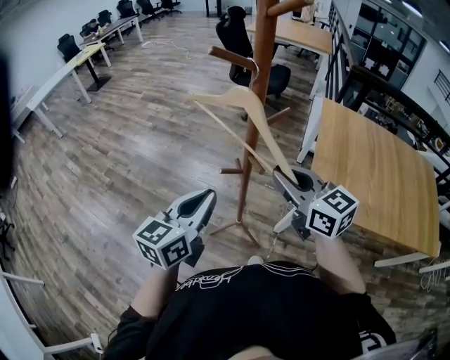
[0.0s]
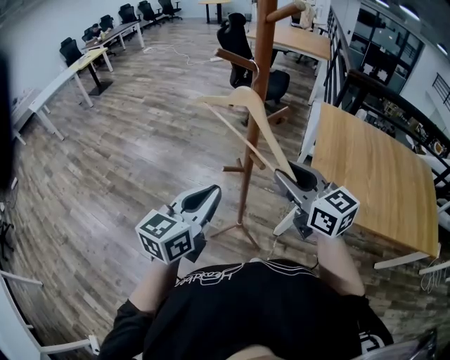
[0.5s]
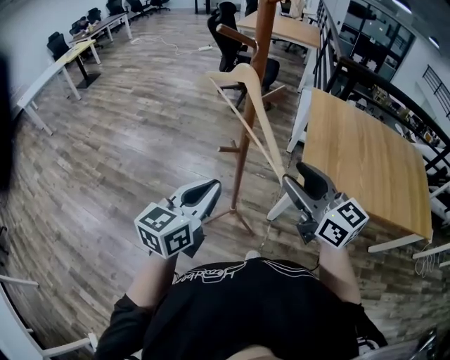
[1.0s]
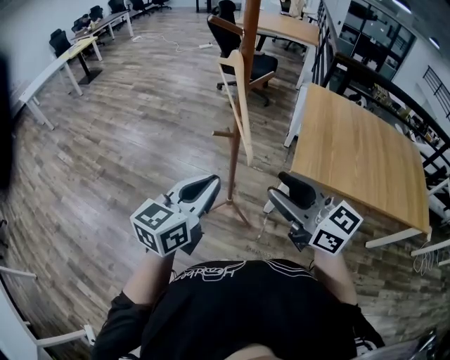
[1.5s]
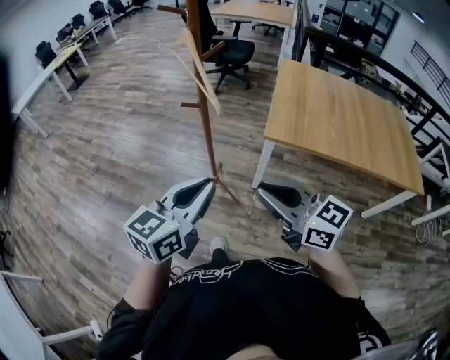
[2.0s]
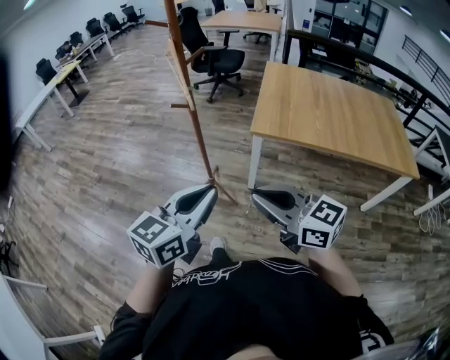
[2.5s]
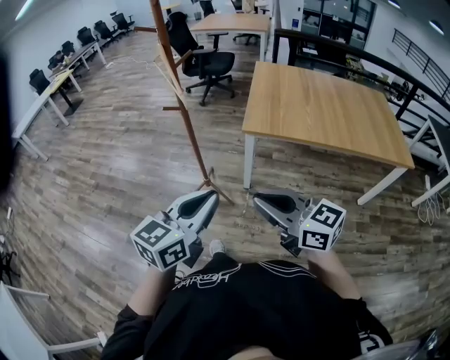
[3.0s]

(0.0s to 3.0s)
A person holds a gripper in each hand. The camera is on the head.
0.0s - 1.5s: The right gripper moves backward, some 20 cm, and opens. Meanwhile the left gripper heads backward, covering about 10 cm.
1.5s - 3.0s: The grippers both shift backward and to the right by some 30 cm. The right gripper closes.

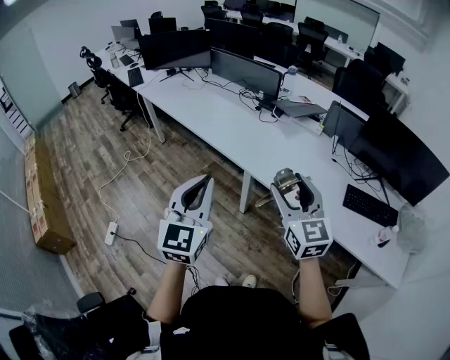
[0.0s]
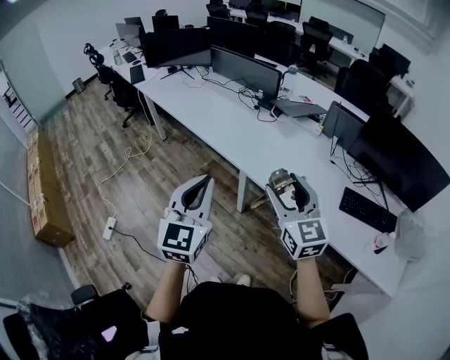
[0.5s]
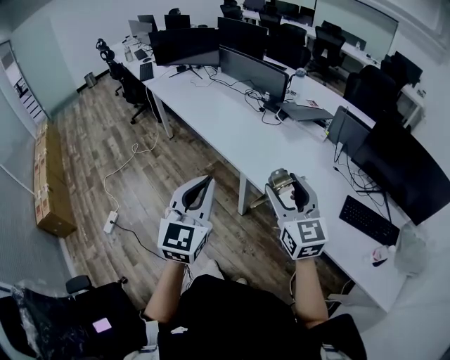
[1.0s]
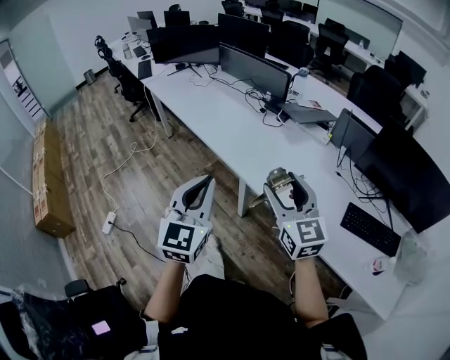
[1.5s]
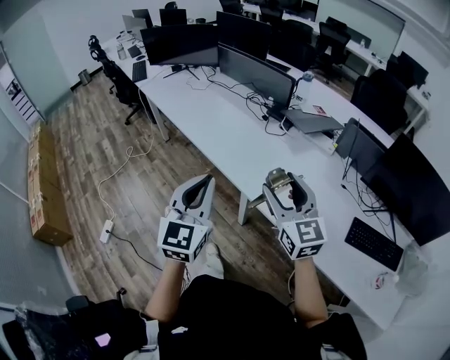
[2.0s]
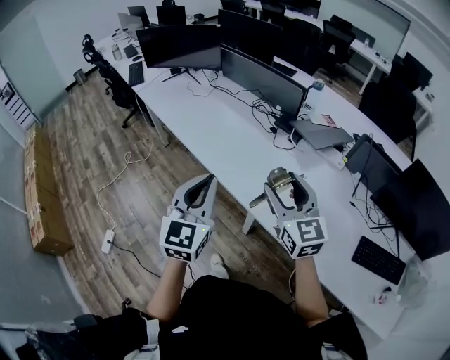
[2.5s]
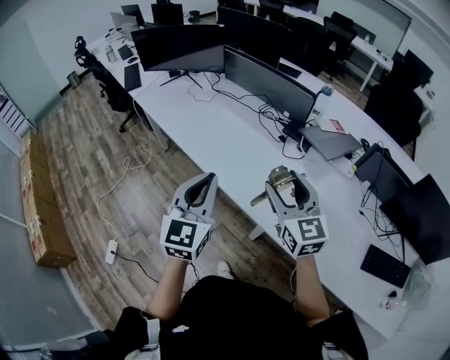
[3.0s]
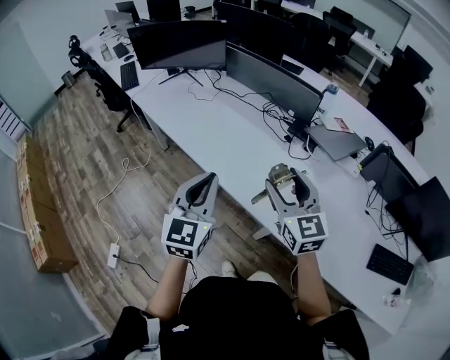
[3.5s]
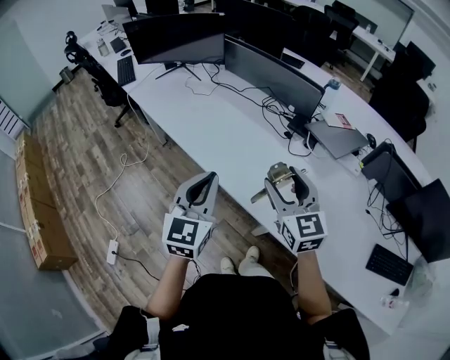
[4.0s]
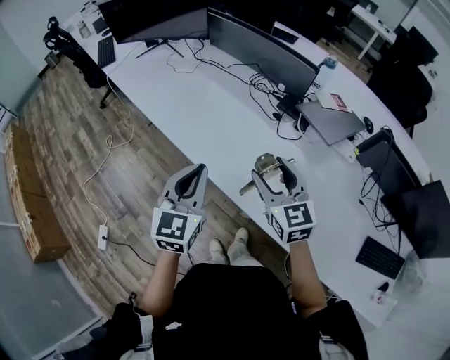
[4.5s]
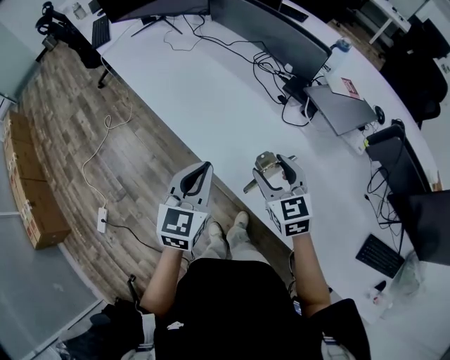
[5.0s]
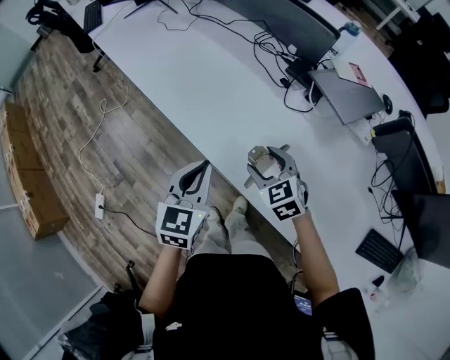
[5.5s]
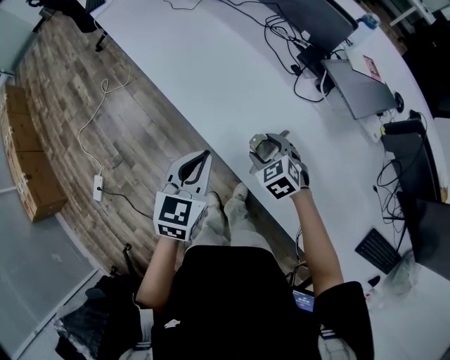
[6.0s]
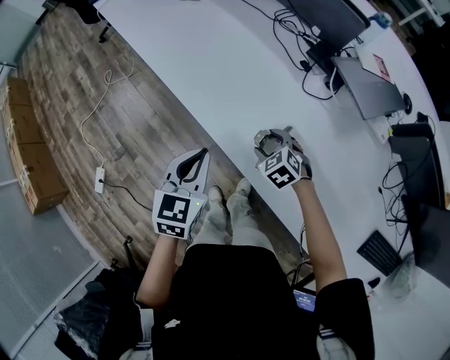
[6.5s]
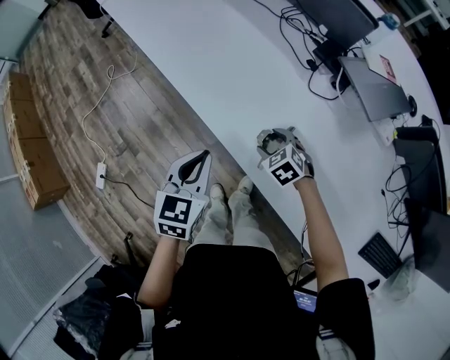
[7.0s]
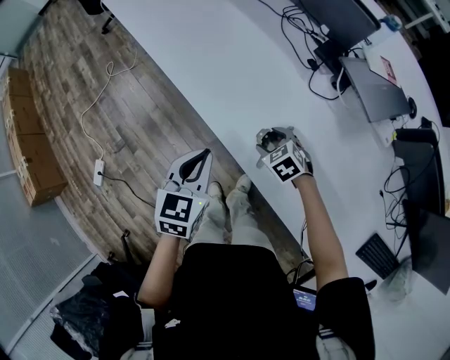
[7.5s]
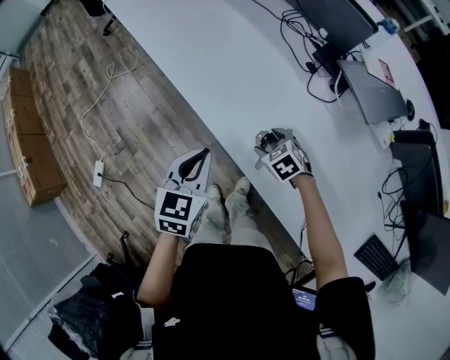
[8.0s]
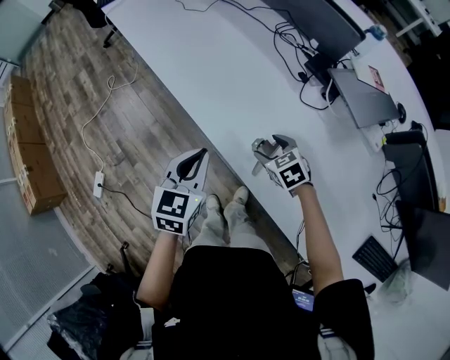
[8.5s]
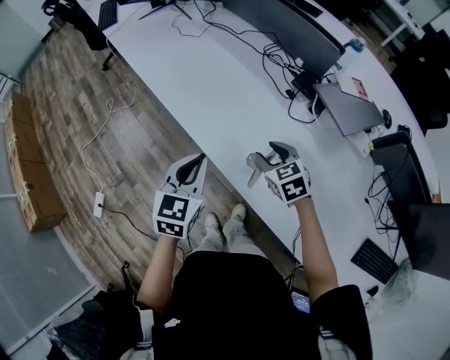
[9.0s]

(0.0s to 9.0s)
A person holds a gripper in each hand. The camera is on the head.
0.0s - 2.0s: Both grippers move forward, approximately 15 cm.
2.0s - 4.5s: Both grippers move forward, about 30 cm.
4.5s - 7.0s: The right gripper travels downward by roughly 30 cm, and tilts its fingers about 40 degrees downward, while the left gripper shifts about 20 cm downward, and changes its angle by roughly 20 degrees.
7.0s - 9.0s: The right gripper shifts roughly 15 cm upward, and turns by approximately 20 degrees; the left gripper shifts roughly 10 cm upward.

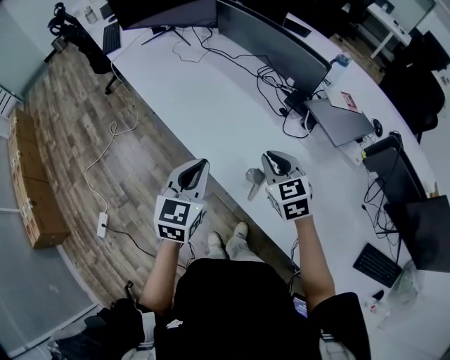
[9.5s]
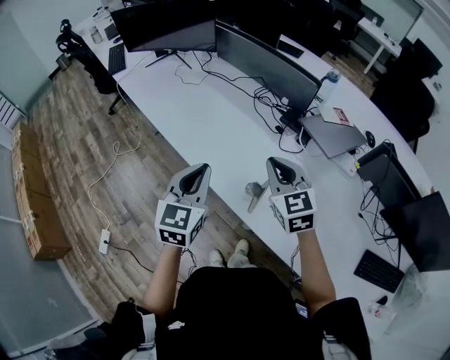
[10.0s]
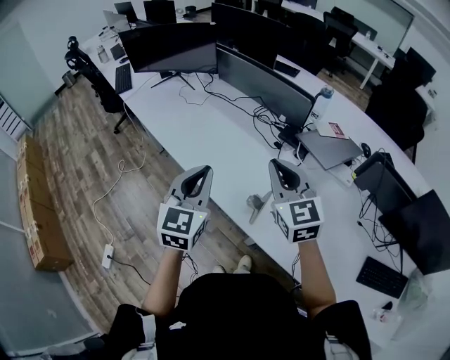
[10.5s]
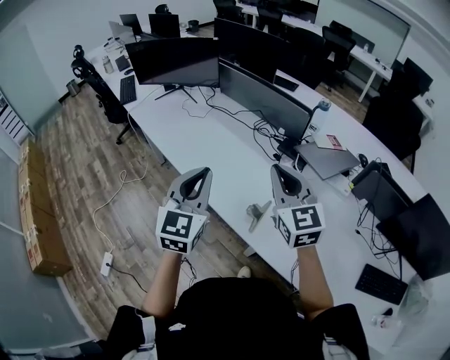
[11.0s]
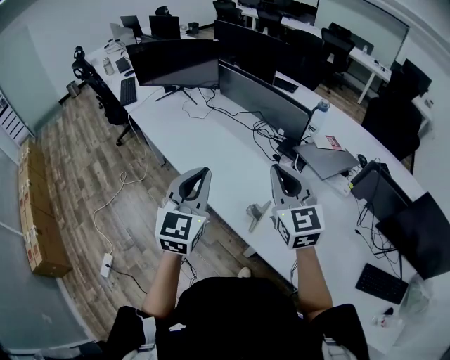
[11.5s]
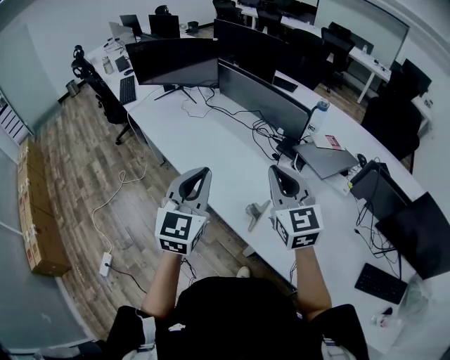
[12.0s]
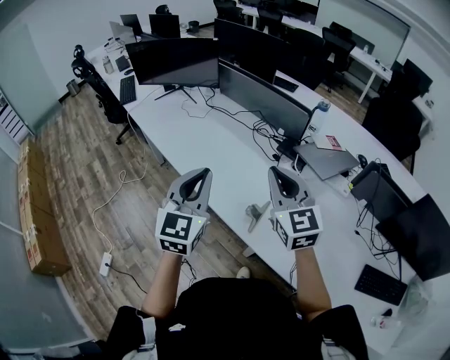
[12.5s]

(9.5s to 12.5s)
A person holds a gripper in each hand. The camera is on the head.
9.5s - 11.0s: Both grippers move upward, some 15 cm. The right gripper swivels roughly 30 degrees.
11.0s - 12.5s: Both grippers stay about where they are.

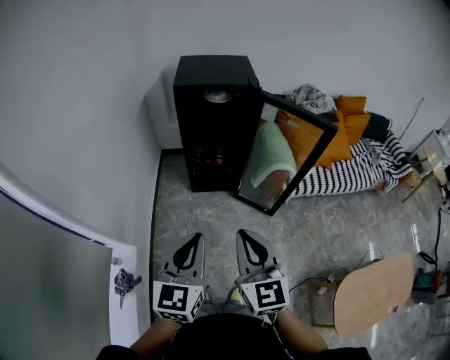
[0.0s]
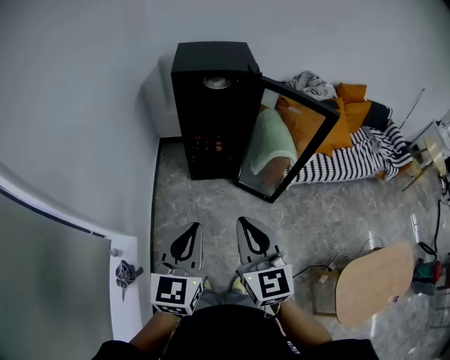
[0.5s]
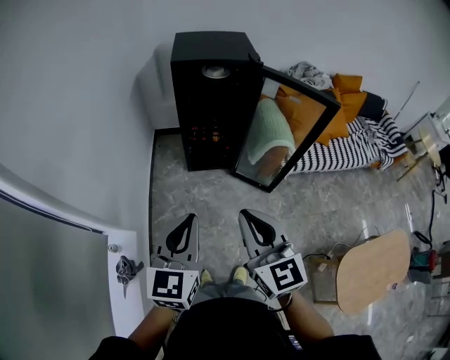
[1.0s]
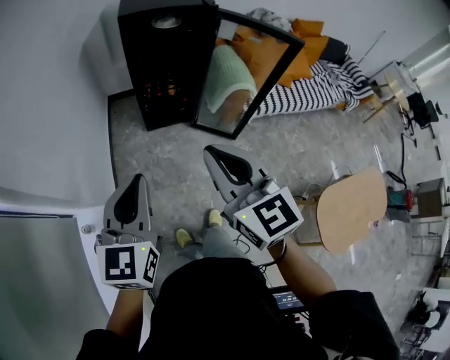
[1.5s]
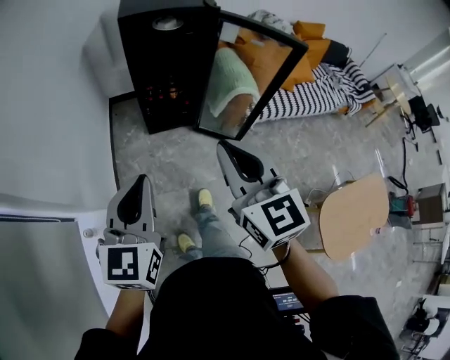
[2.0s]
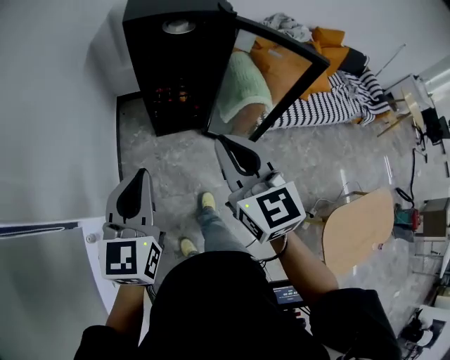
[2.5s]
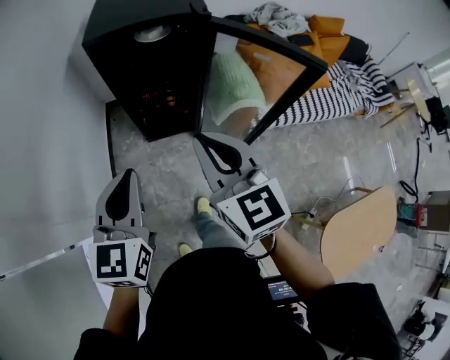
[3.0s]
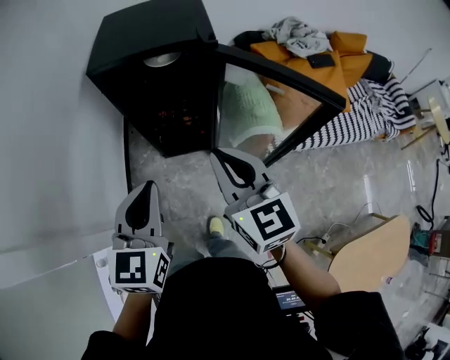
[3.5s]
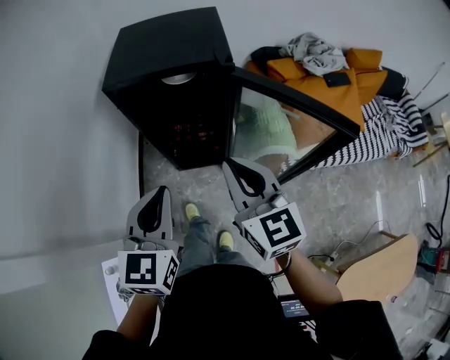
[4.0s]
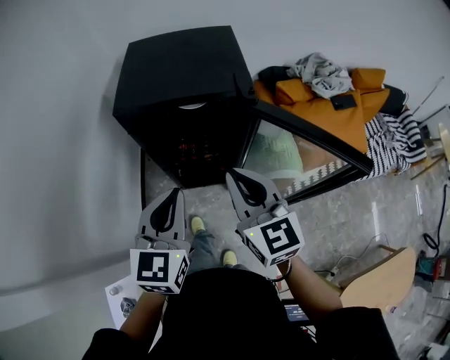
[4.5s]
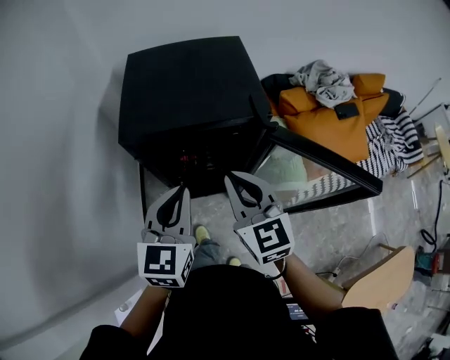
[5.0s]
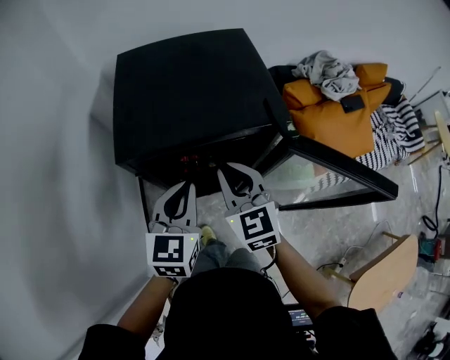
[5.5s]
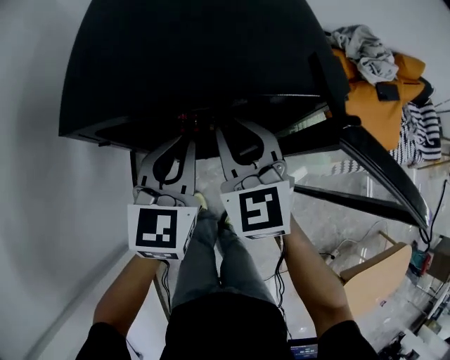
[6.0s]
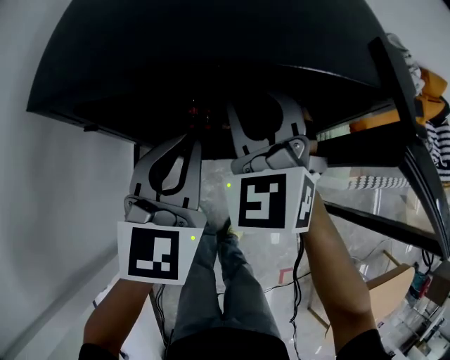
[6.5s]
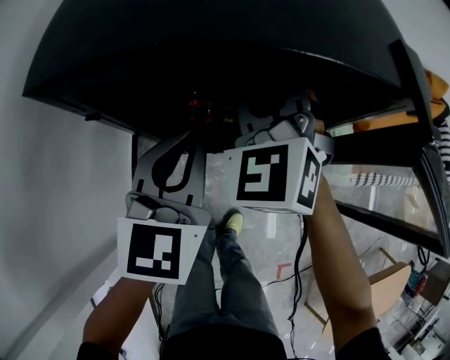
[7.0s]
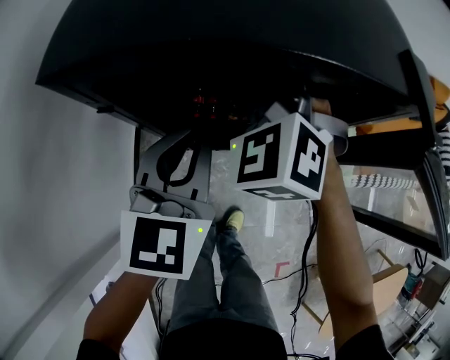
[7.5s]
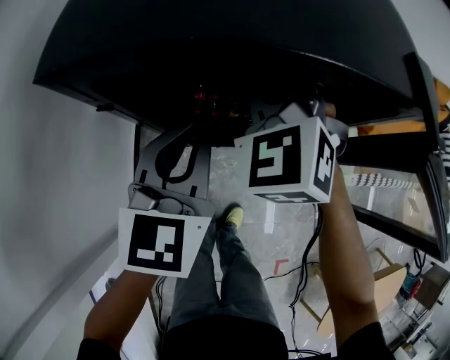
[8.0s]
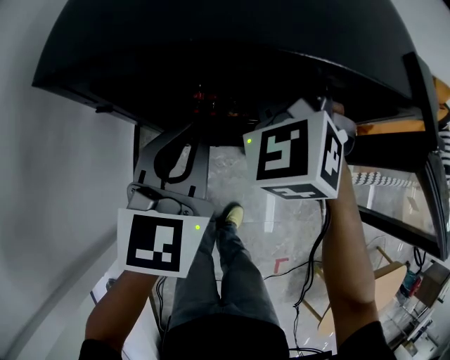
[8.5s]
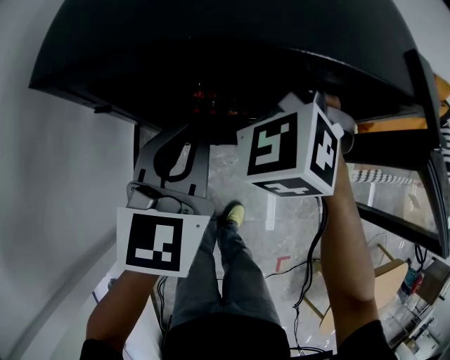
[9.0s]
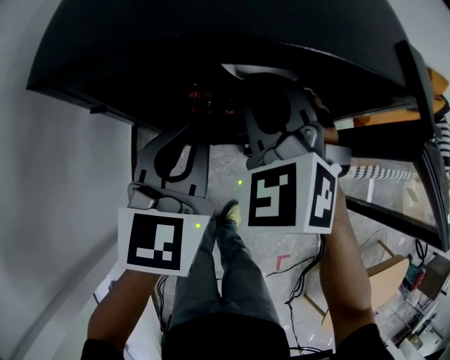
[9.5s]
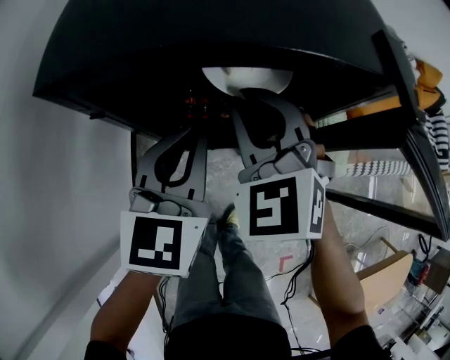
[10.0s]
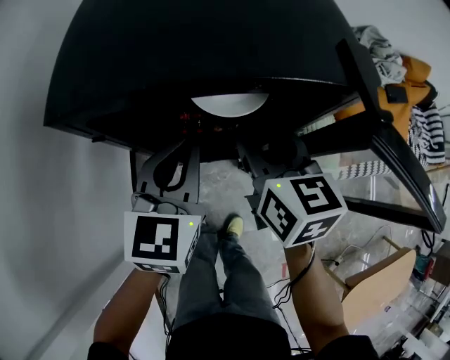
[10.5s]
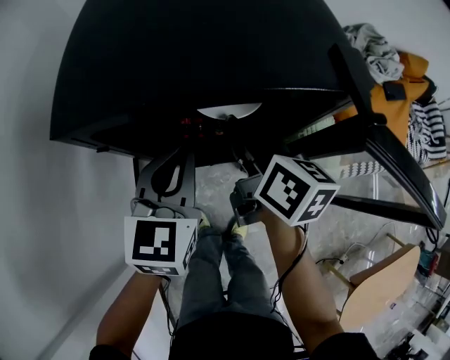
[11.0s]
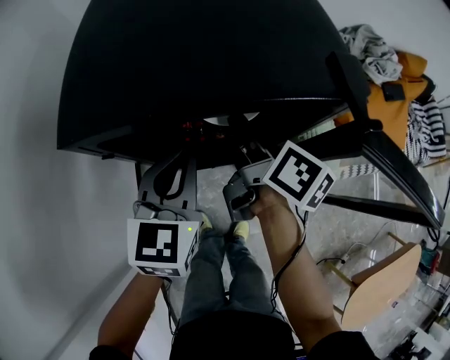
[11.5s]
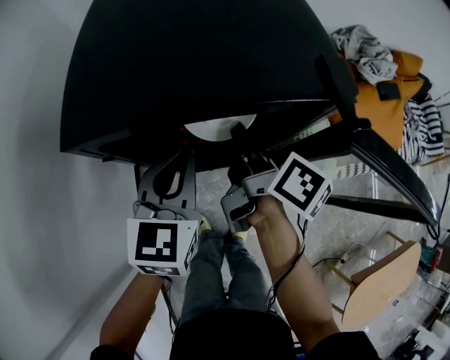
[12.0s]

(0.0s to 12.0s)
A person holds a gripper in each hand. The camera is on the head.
0.0s - 2.0s: The left gripper heads to the left, covering about 10 cm.
2.0s - 4.0s: The right gripper moves forward, approximately 30 cm. Meanwhile the left gripper travels forward and to the right by some 35 cm.
4.0s - 6.0s: The grippers both shift forward and downward by roughly 30 cm. The right gripper rotates approximately 20 degrees.
6.0s - 8.0s: The right gripper moves forward, roughly 5 cm, and swivels about 30 degrees. The left gripper ends up about 5 cm from where it was.
8.0s - 10.0s: The right gripper moves backward, some 5 cm.
10.0s - 12.0s: The right gripper goes roughly 5 cm to the right, twists roughly 110 degrees clockwise, seen from behind, and opens, then closes once more.
